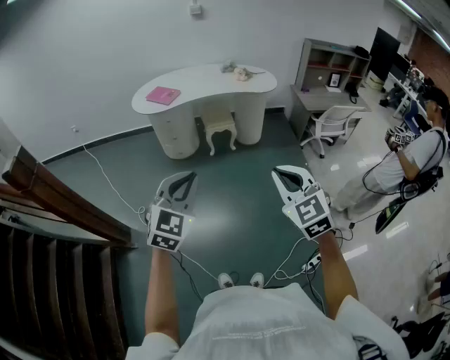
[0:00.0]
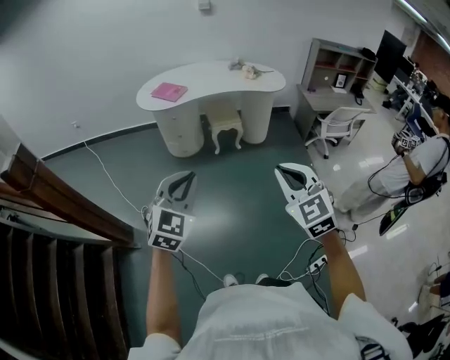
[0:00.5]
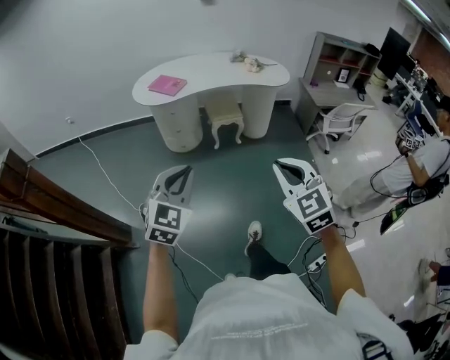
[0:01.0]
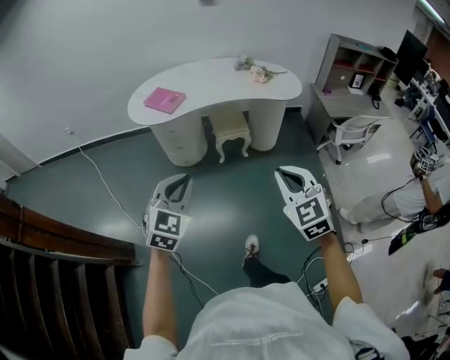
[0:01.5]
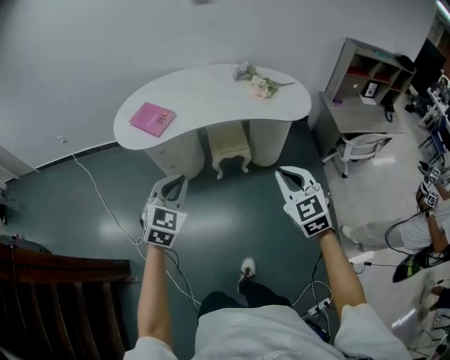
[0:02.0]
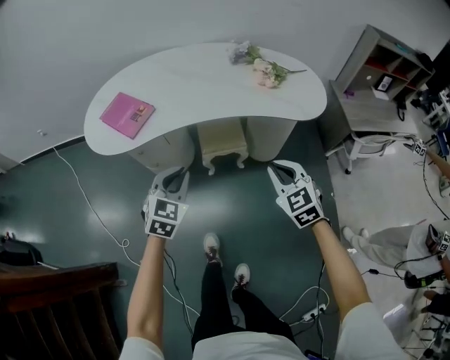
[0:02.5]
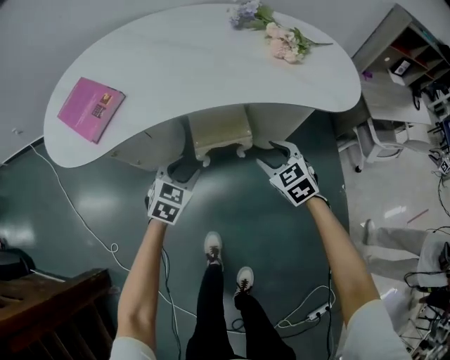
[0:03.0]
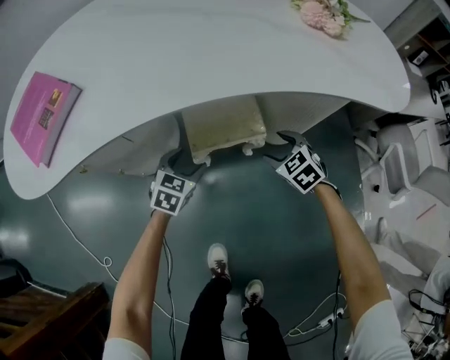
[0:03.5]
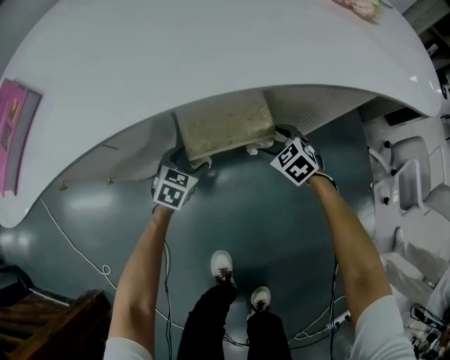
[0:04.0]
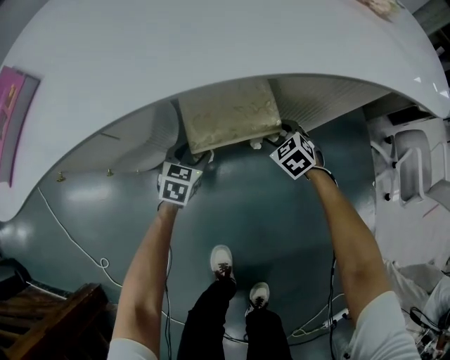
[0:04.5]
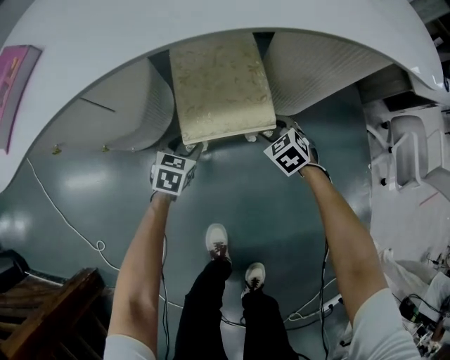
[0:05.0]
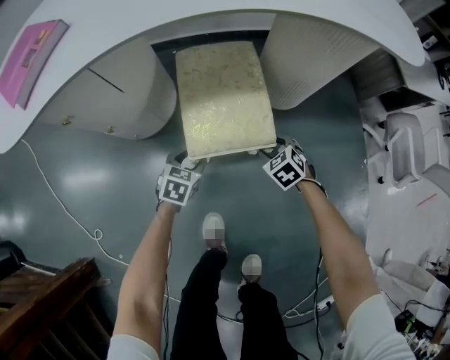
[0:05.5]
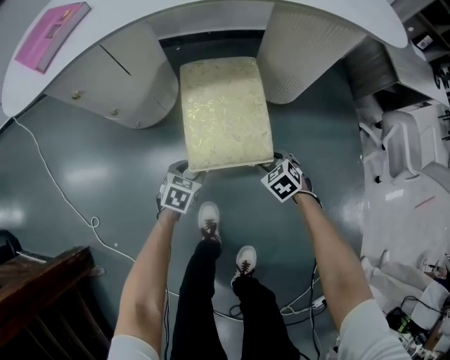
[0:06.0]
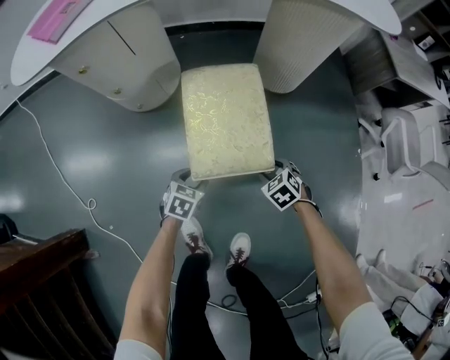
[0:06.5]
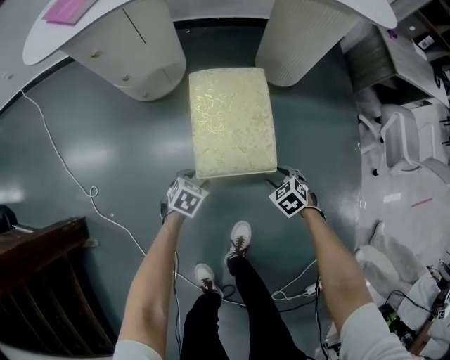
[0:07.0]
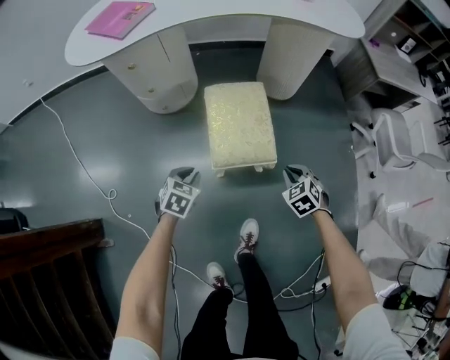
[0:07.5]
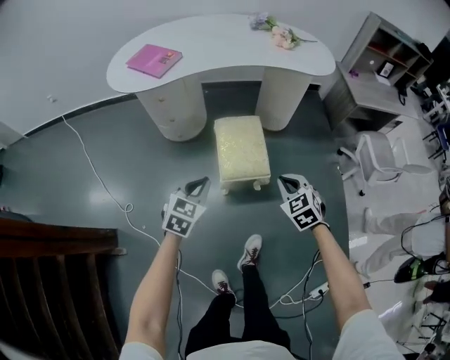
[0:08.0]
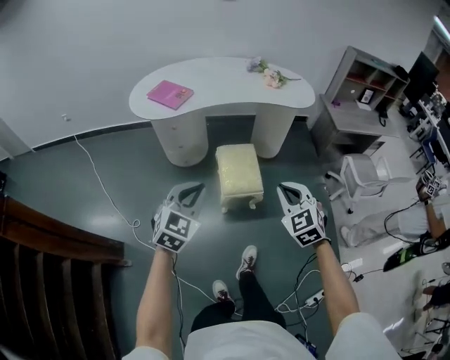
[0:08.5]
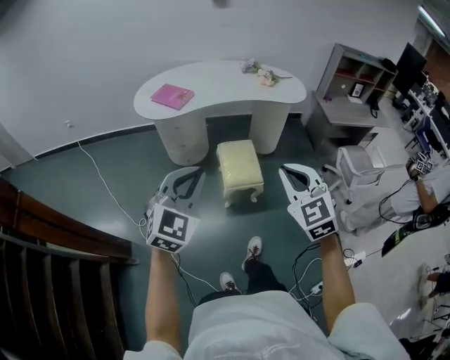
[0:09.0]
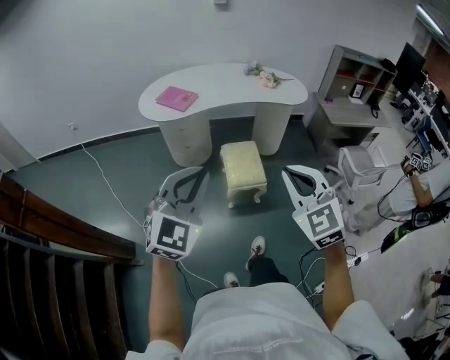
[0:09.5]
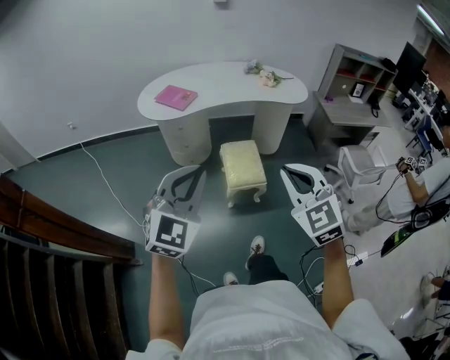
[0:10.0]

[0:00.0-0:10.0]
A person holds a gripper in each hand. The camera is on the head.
0:00.0 to 0:02.0: The pair of grippers is taken forward, about 50 cm.
0:02.0 to 0:04.0: The pair of grippers is taken forward, about 40 cm. Both grippers travel together downward, roughly 70 cm. The right gripper points its fingers some 30 degrees further downward, and opens up; the left gripper swivels about 30 degrees, and opens up.
0:04.0 to 0:06.0: The grippers both shift backward by about 25 cm.
0:06.0 to 0:08.0: The two grippers go roughly 50 cm upward and backward. The left gripper changes its angle by about 20 degrees, and closes, while the right gripper turns by about 20 degrees, and closes.
0:08.0 to 0:10.0: Both grippers move upward and backward, some 40 cm. The right gripper turns by about 30 degrees, while the left gripper turns by approximately 30 degrees.

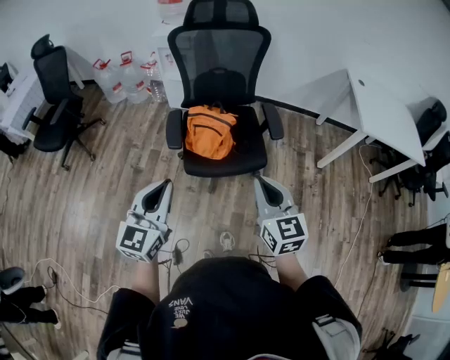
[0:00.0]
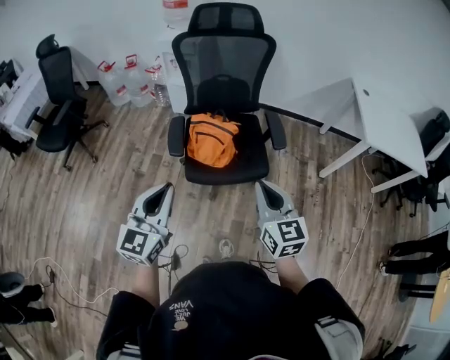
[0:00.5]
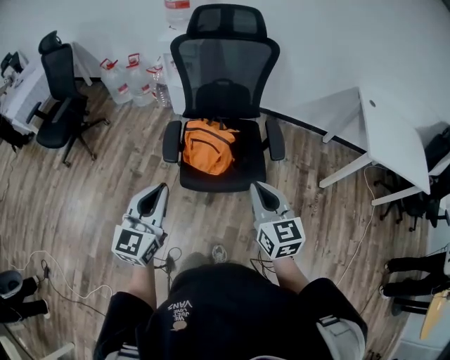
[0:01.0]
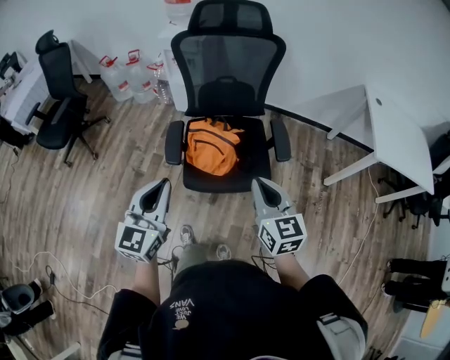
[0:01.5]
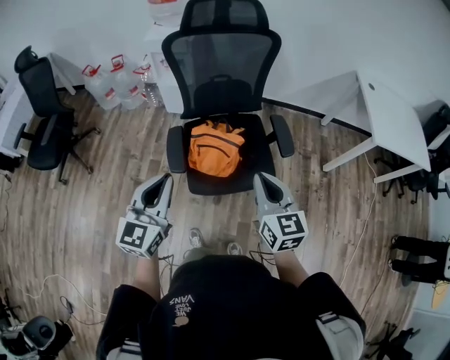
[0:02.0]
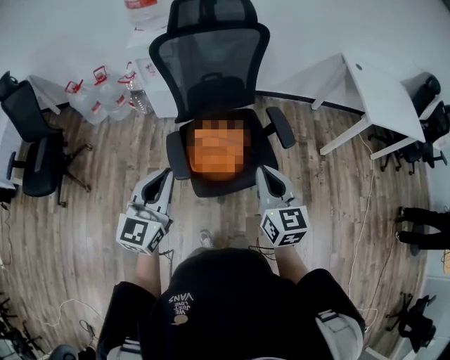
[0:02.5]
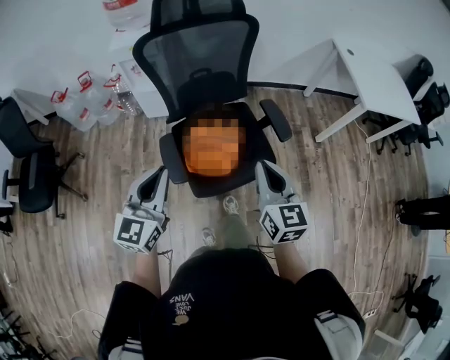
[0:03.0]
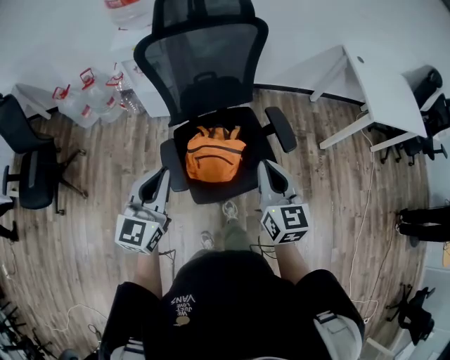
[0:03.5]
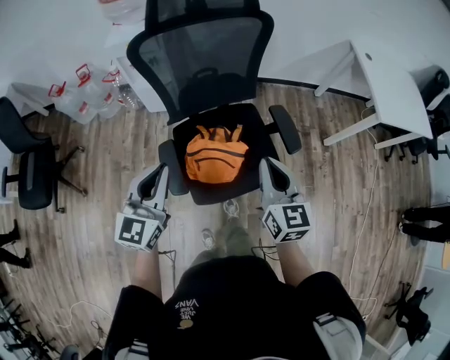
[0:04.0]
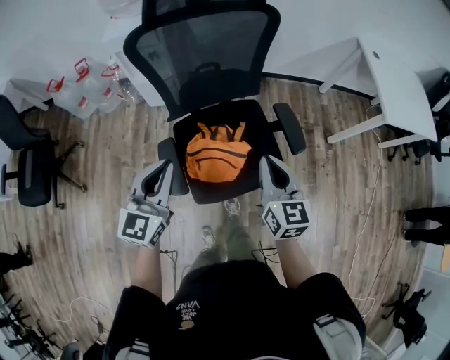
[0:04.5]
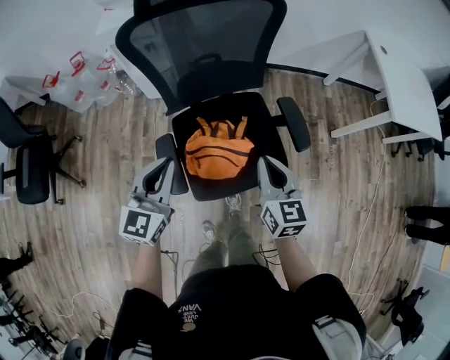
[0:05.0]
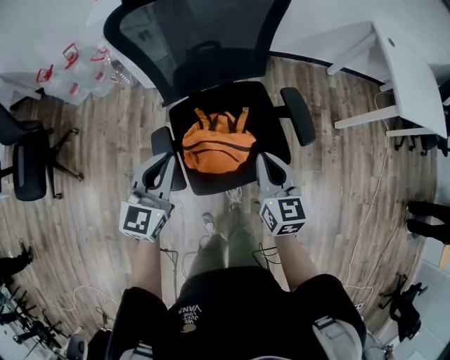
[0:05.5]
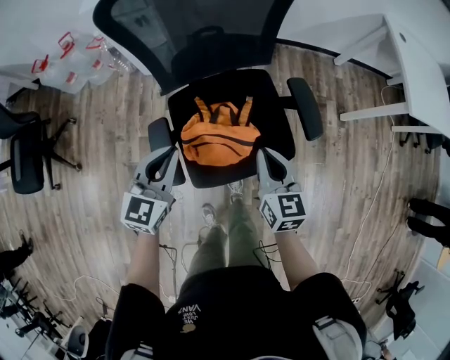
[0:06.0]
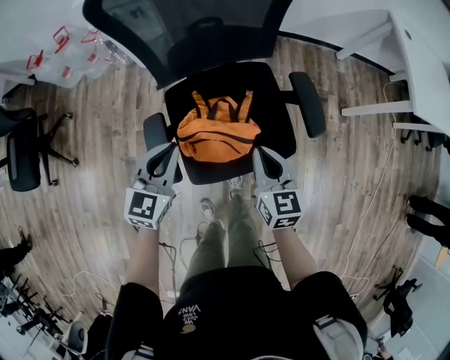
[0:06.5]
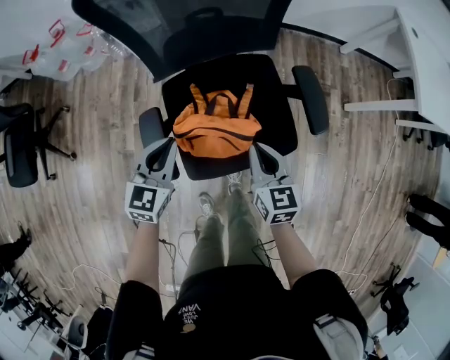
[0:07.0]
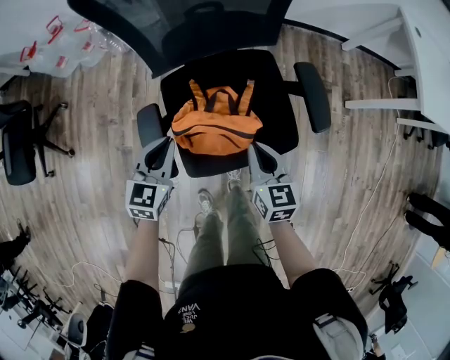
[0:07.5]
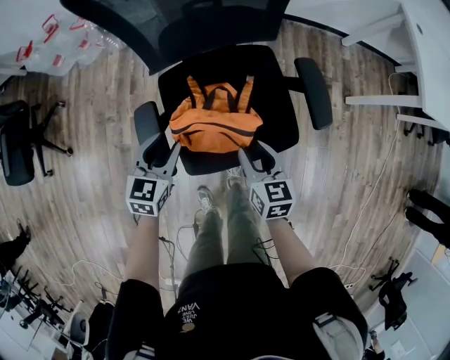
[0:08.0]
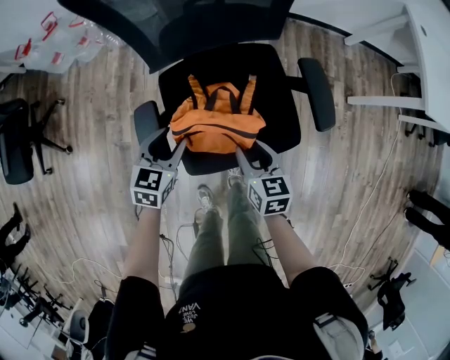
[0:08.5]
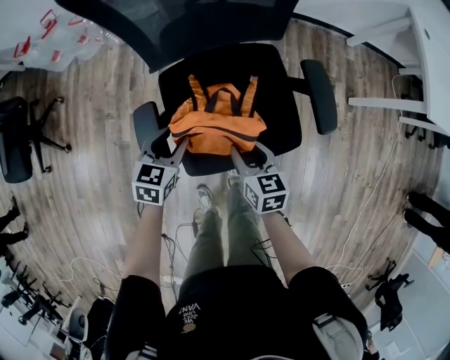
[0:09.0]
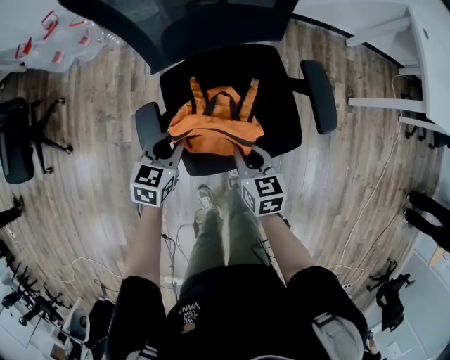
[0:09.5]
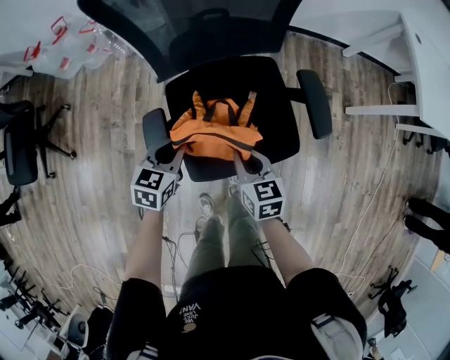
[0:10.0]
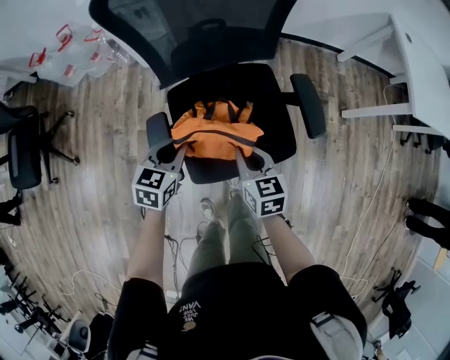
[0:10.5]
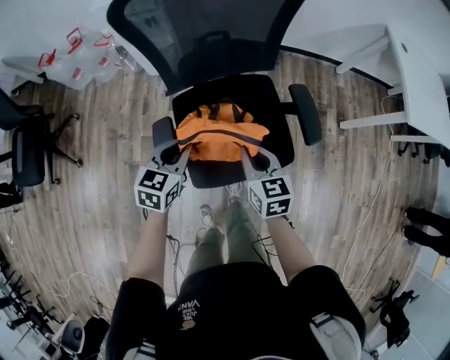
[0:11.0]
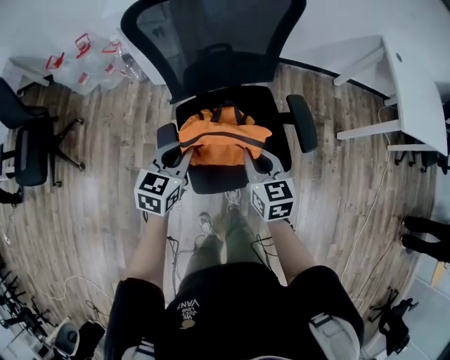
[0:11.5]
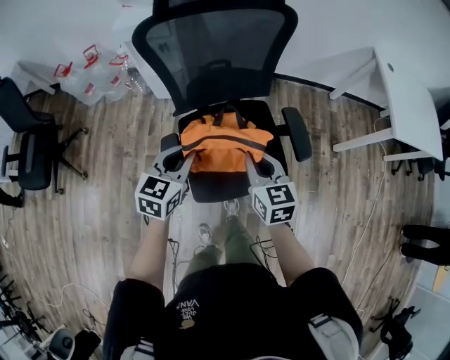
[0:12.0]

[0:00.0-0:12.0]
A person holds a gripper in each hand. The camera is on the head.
0:00.0 to 0:02.0: Both grippers travel together forward, approximately 15 cm.
0:02.0 to 0:04.0: The two grippers go roughly 15 cm forward.
0:04.0 to 0:06.0: The right gripper moves downward, roughly 15 cm. The left gripper moves downward and forward, some 20 cm.
0:06.0 to 0:08.0: Both grippers move downward, about 15 cm. The left gripper opens. The right gripper opens.
0:08.0 to 0:10.0: The right gripper closes up. Meanwhile the left gripper closes.
0:10.0 to 0:12.0: Both grippers move upward, roughly 20 cm.

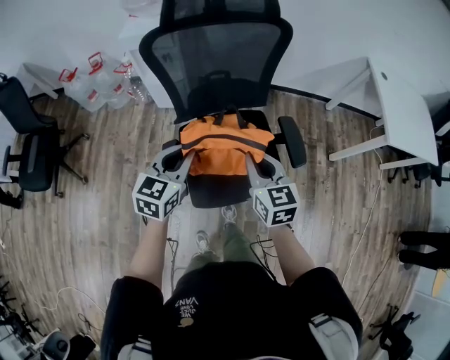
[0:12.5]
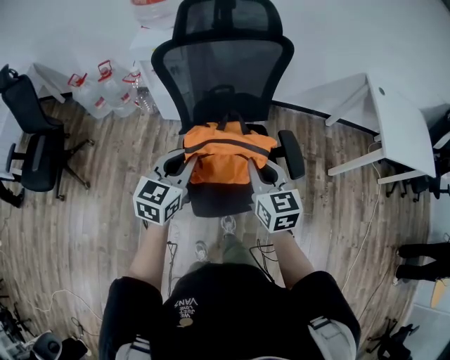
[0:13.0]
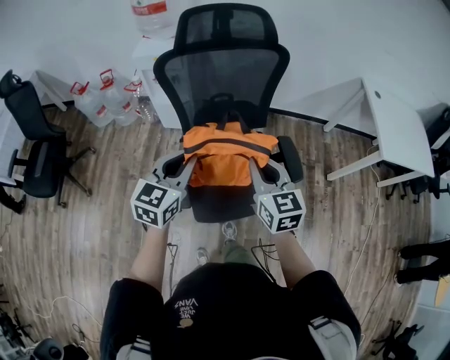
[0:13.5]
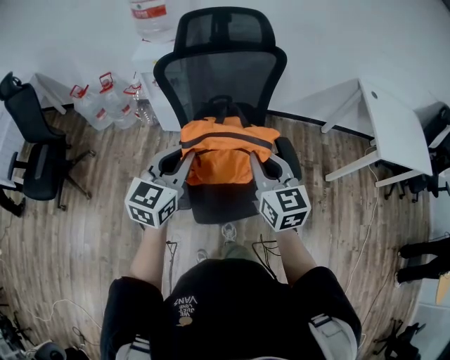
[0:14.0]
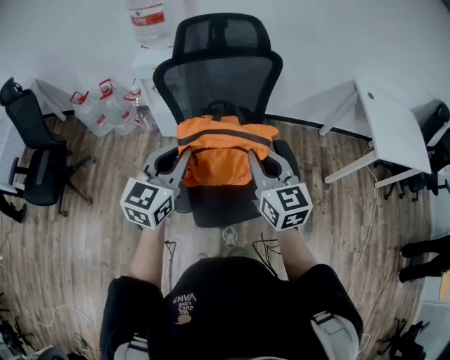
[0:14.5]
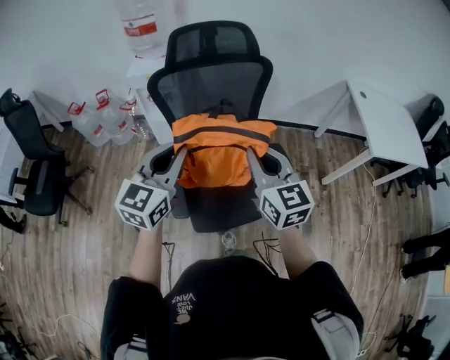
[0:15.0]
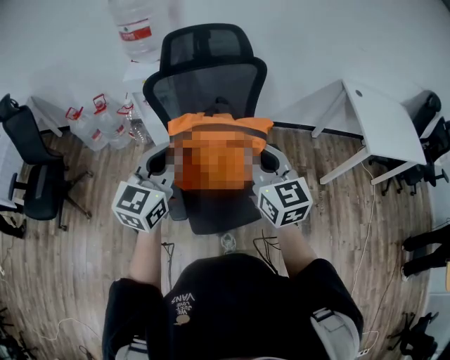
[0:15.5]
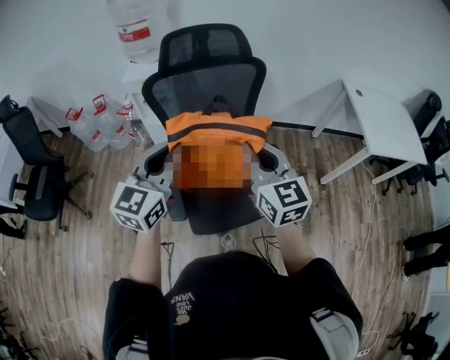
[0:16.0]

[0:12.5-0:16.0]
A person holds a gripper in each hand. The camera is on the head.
0:12.5 to 0:14.5: Both grippers move upward, roughly 15 cm.
0:14.5 to 0:16.0: The left gripper is displaced upward by approximately 5 cm; the right gripper ends up approximately 5 cm from where it was.

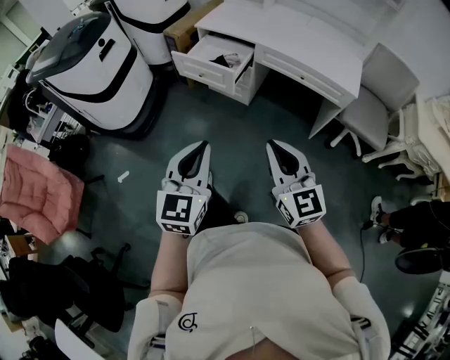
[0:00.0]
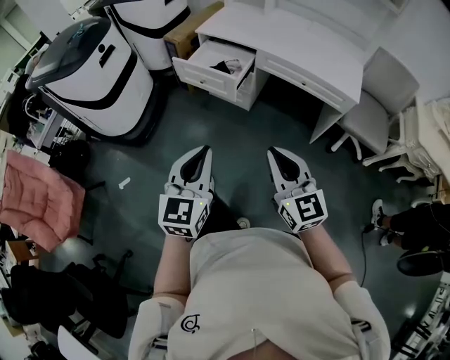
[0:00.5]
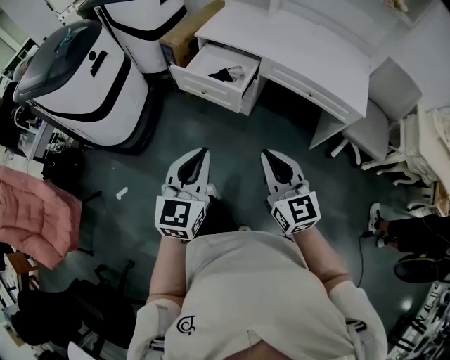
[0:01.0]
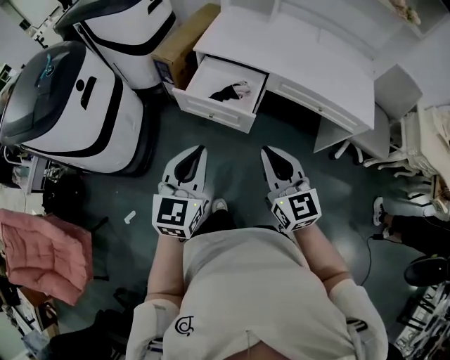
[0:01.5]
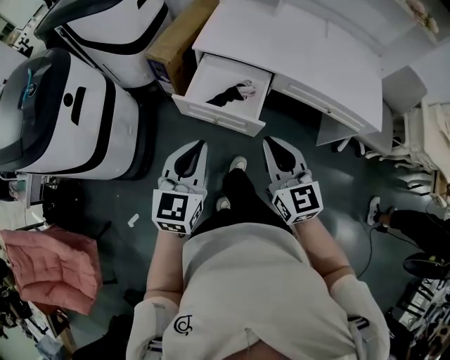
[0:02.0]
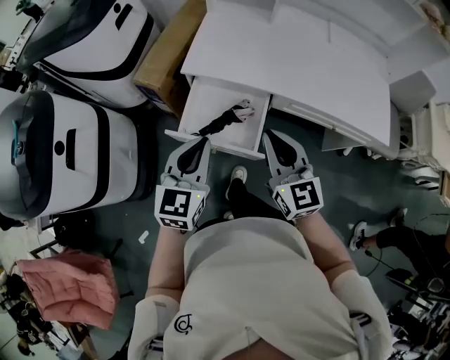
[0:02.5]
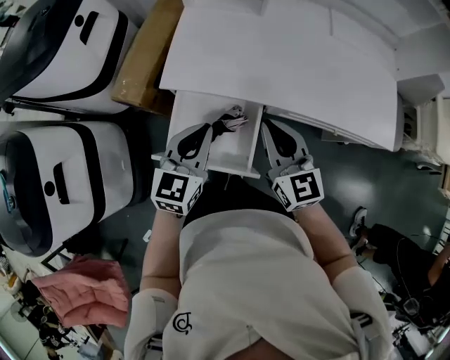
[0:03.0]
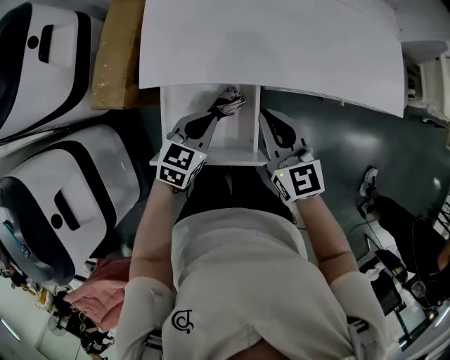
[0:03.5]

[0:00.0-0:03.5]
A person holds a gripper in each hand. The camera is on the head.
0:00.0 to 0:02.0: Both grippers travel together forward and to the left, some 40 cm.
0:02.0 to 0:03.5: The right gripper shifts by about 30 cm; the left gripper changes place by approximately 40 cm, and changes its angle by some 40 degrees.
